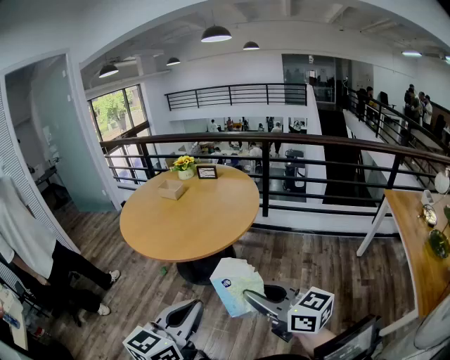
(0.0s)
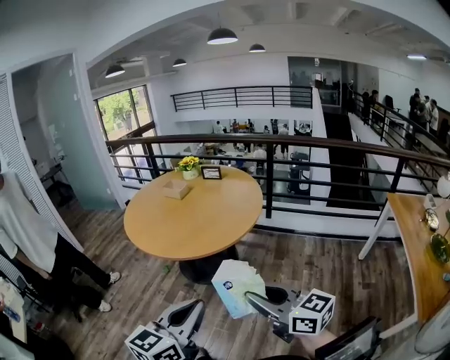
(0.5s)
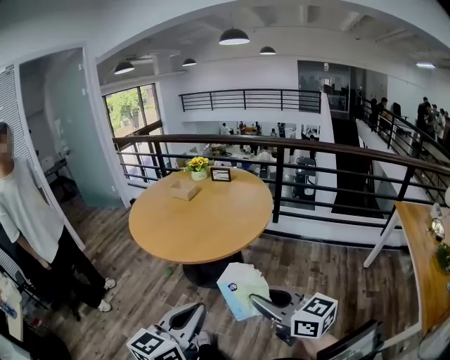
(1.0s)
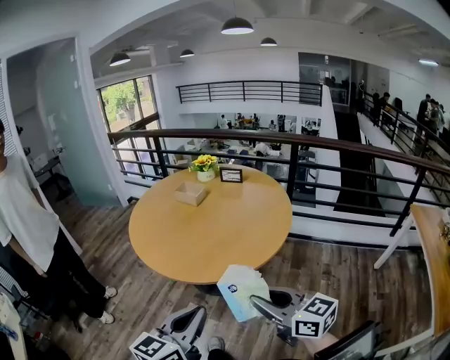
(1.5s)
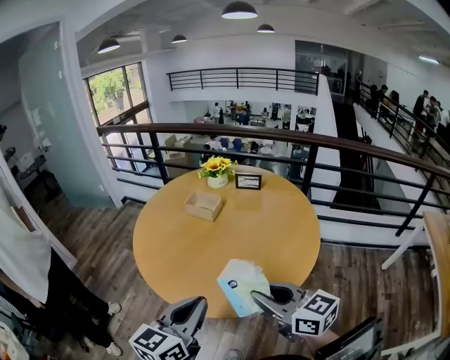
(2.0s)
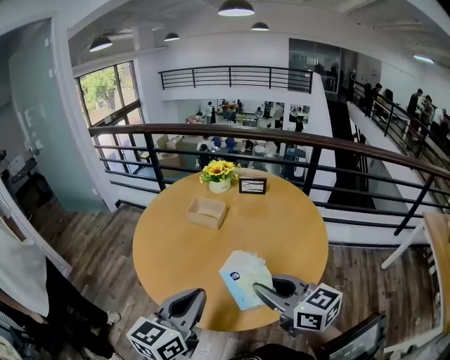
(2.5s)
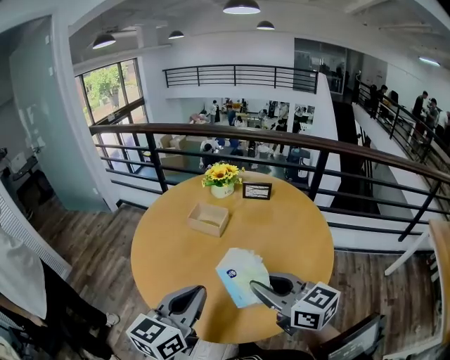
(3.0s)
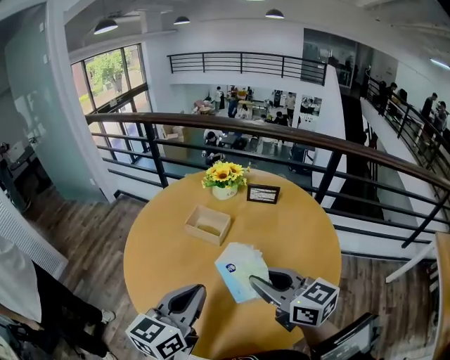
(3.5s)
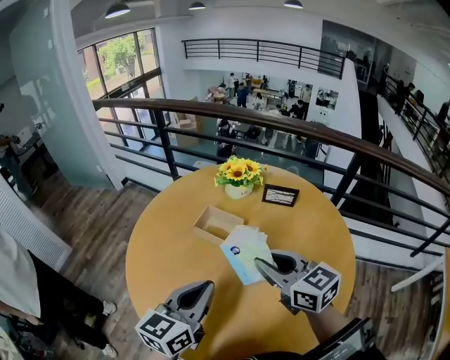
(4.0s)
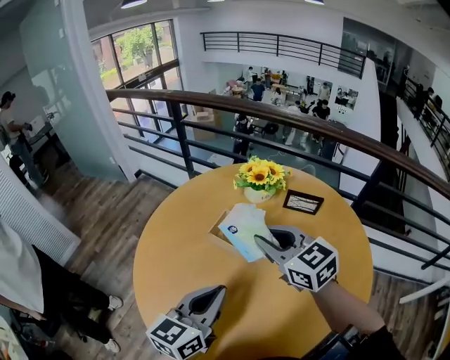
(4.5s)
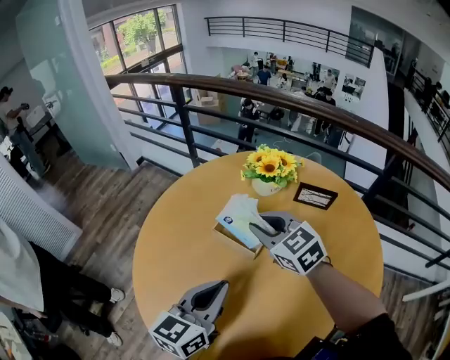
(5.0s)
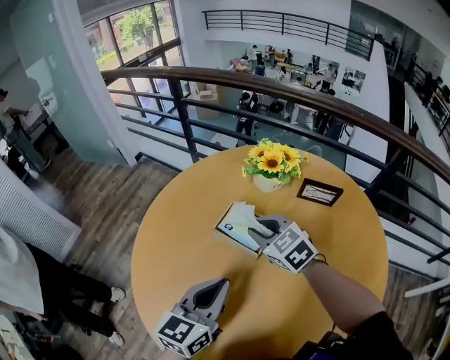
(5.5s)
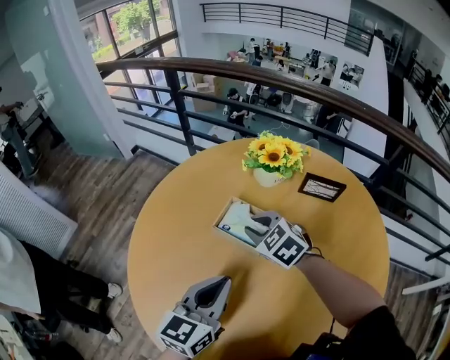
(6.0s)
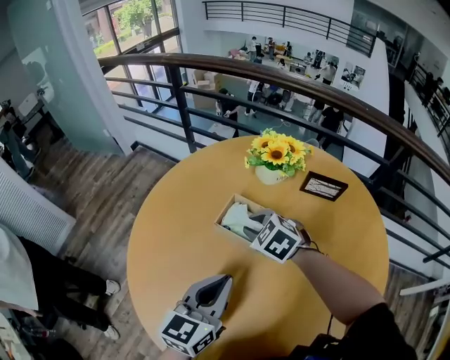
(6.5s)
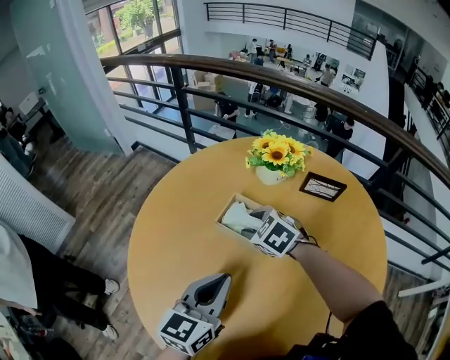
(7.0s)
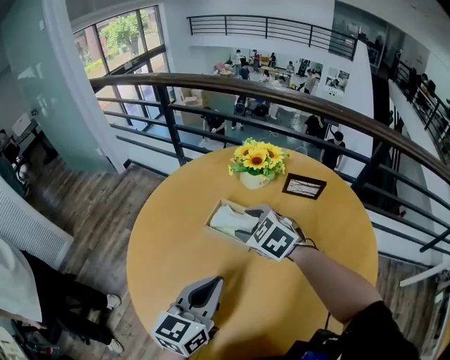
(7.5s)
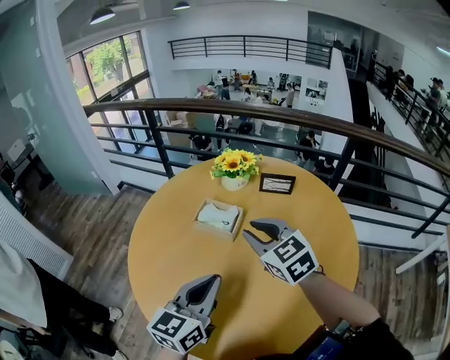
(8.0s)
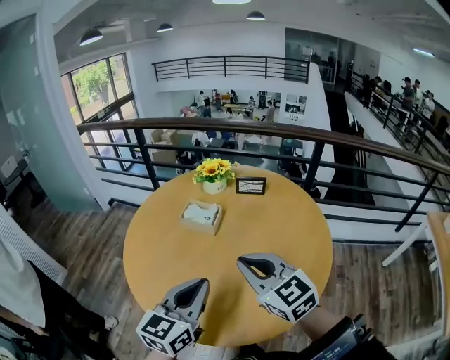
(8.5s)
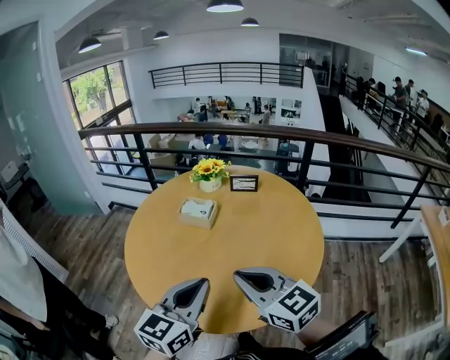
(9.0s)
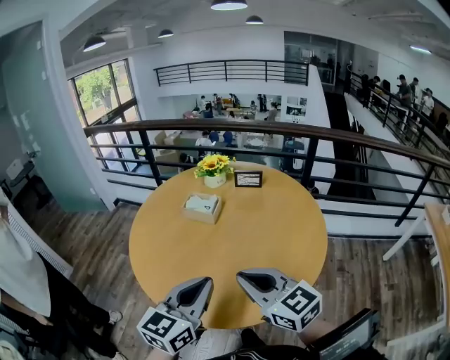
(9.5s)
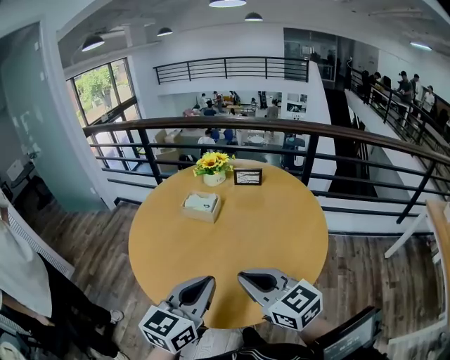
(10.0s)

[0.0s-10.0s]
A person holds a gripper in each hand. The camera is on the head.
0.0s to 2.0s: The grippers both shift forward and to the left by some 35 cm.
2.0s to 4.0s: The grippers both shift forward by approximately 30 cm.
4.0s to 6.0s: The left gripper is displaced downward and forward by some 10 cm. Meanwhile the right gripper is displaced forward, downward and to the left by about 25 cm, and tips its fingers downward by about 30 degrees.
6.0s to 8.0s: The right gripper shifts approximately 20 cm upward, backward and to the right, rotates about 30 degrees, and opens and closes again. The left gripper is displaced backward and upward by roughly 10 cm.
8.0s to 10.0s: The right gripper travels backward by approximately 25 cm, swivels approximately 20 degrees, and closes its fingers, while the left gripper shifts approximately 15 cm backward.

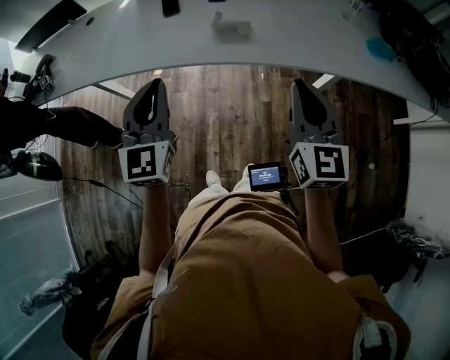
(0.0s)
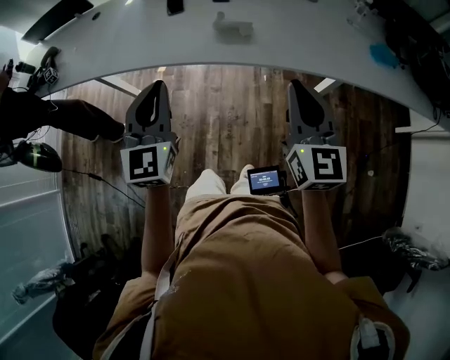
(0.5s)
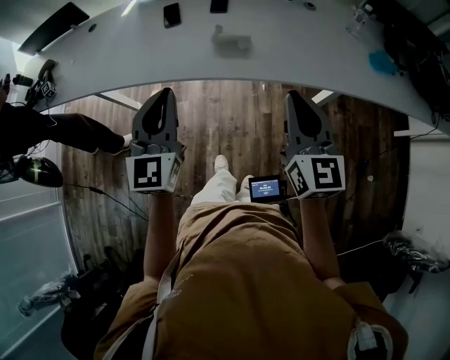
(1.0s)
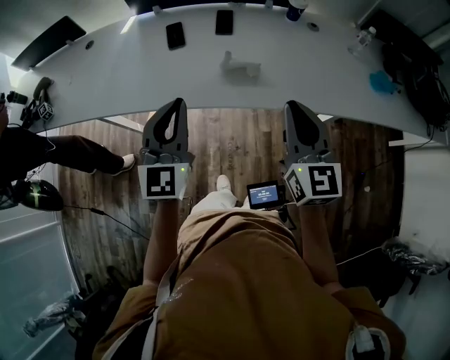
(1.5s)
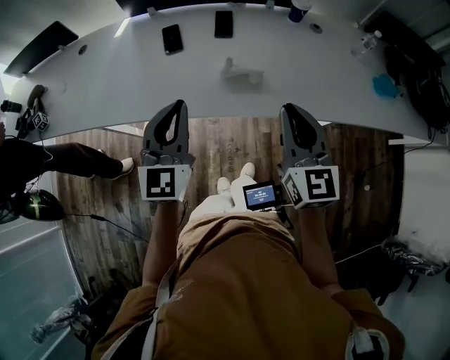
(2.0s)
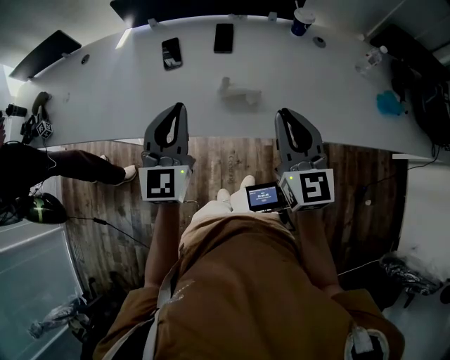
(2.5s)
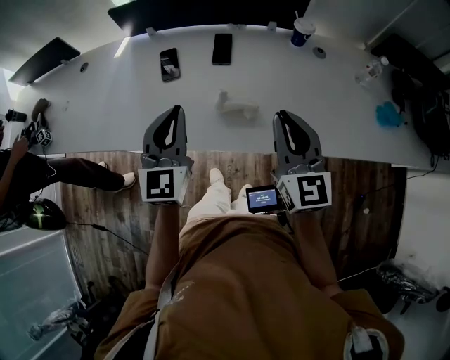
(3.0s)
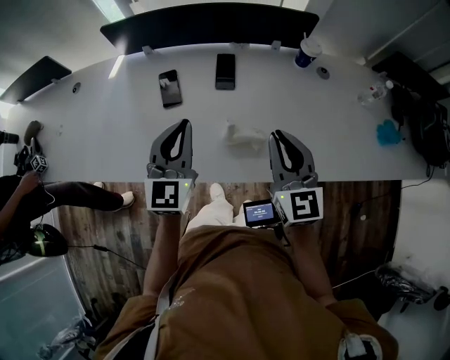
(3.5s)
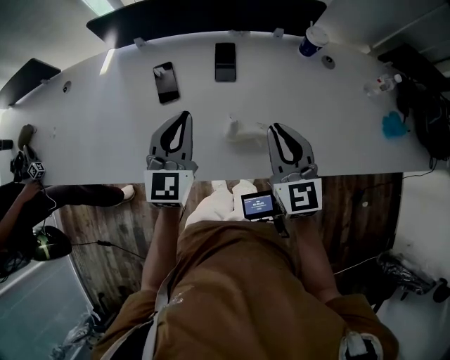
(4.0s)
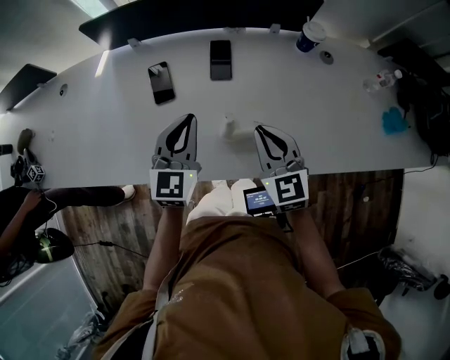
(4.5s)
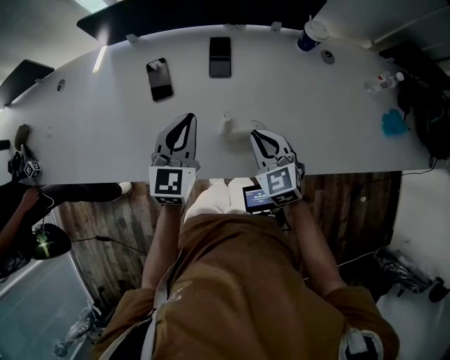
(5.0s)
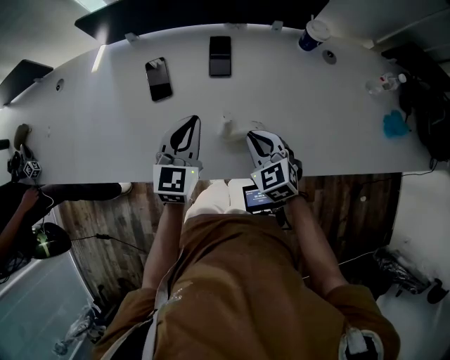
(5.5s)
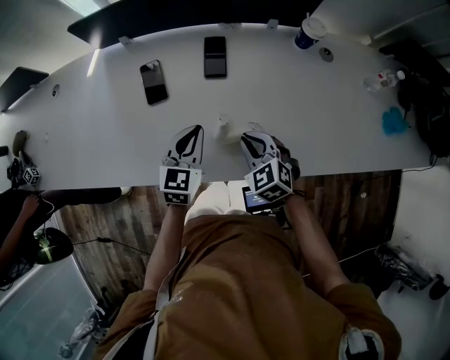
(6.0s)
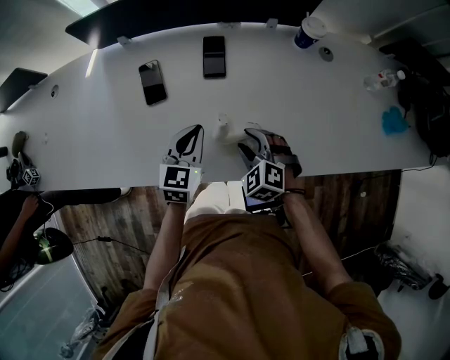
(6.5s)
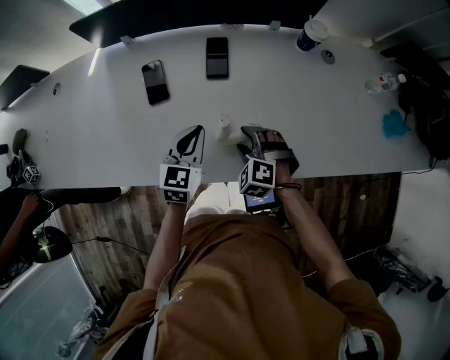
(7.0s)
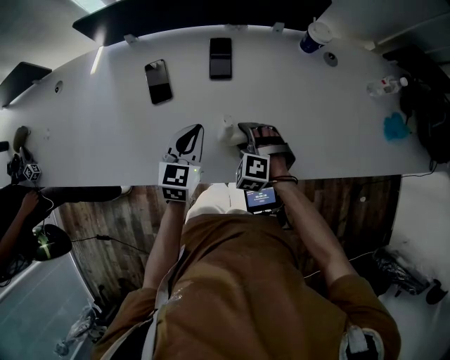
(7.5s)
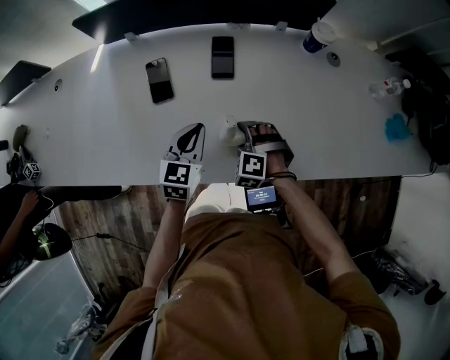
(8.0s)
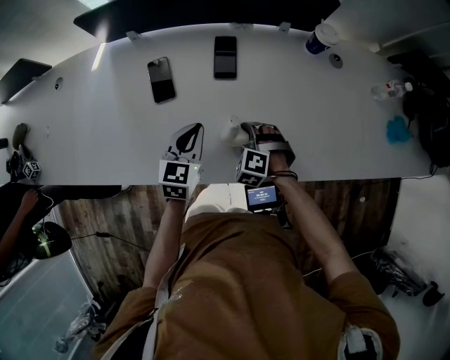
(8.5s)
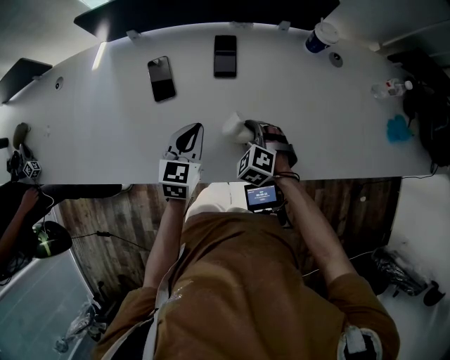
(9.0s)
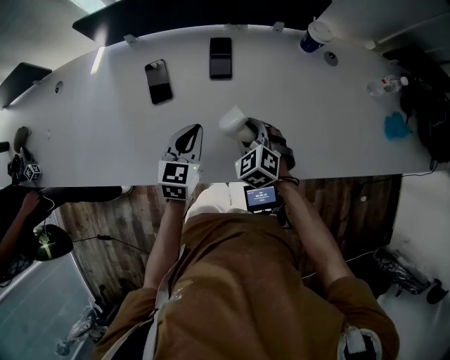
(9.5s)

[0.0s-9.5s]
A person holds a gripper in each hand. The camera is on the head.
0.0s to 2.0s: Both grippers travel together forward, roughly 15 cm.
2.0s to 4.0s: The grippers both shift forward by roughly 20 cm.
4.0s to 5.5s: The left gripper moves downward, some 5 cm. The right gripper heads downward, covering roughly 15 cm, and rotates some 30 degrees.
5.5s to 7.5s: Both grippers travel together downward, about 5 cm. The right gripper turns by some 40 degrees, and opens up.
7.5s to 9.5s: The right gripper changes its angle by some 30 degrees.

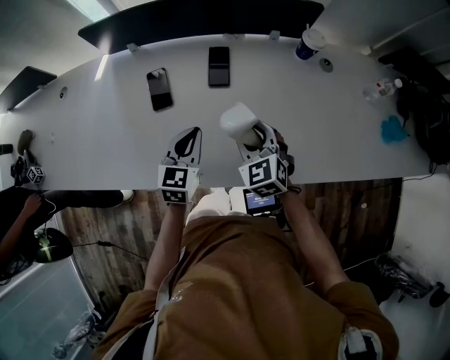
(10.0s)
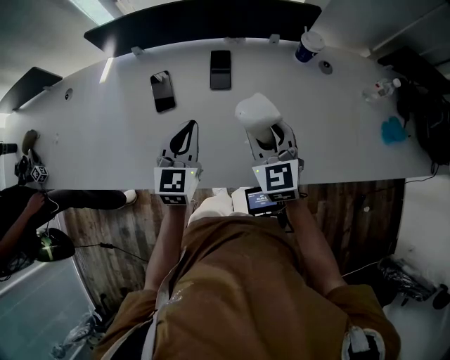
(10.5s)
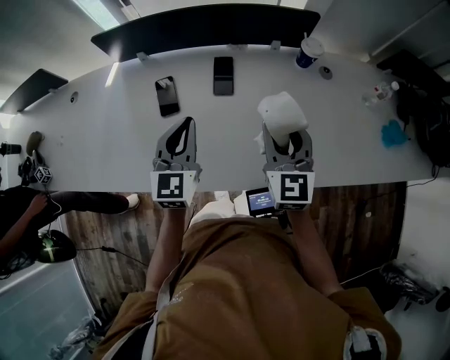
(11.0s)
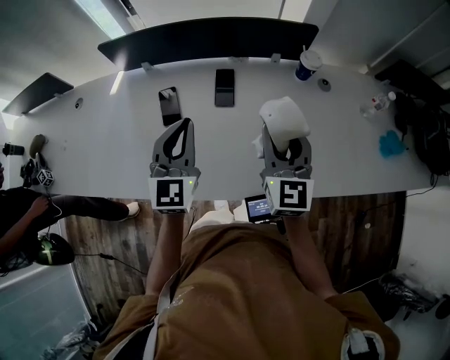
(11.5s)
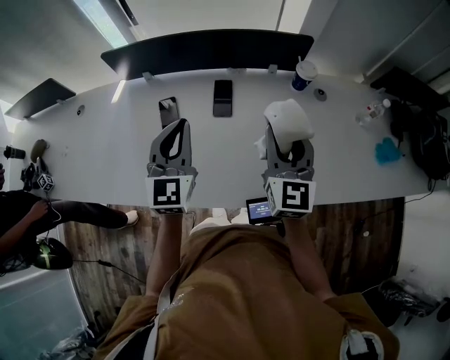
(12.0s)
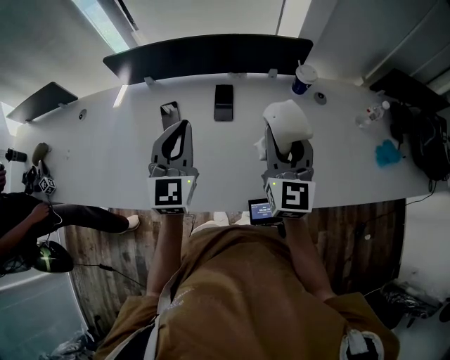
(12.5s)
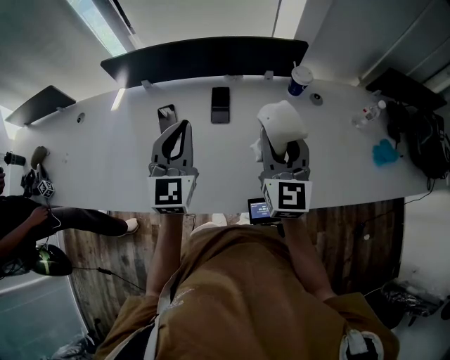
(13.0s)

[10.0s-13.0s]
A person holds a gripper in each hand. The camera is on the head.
10.0s to 11.5s: The right gripper heads upward and to the right, covering roughly 15 cm, and turns by approximately 40 degrees. Meanwhile the left gripper heads upward, covering approximately 15 cm, and changes its angle by about 30 degrees.
11.5s to 13.0s: The grippers stay close to where they were, moving slightly.

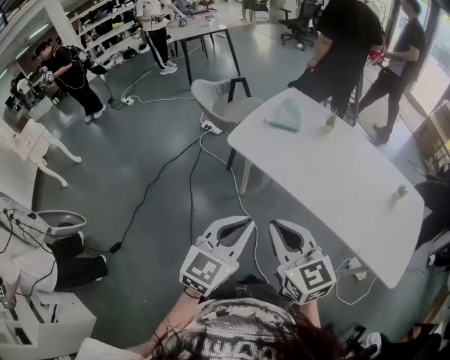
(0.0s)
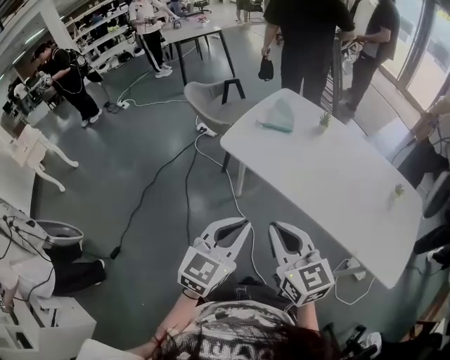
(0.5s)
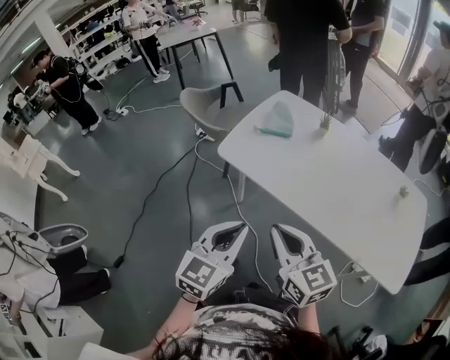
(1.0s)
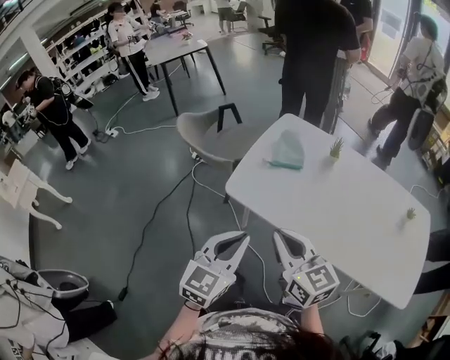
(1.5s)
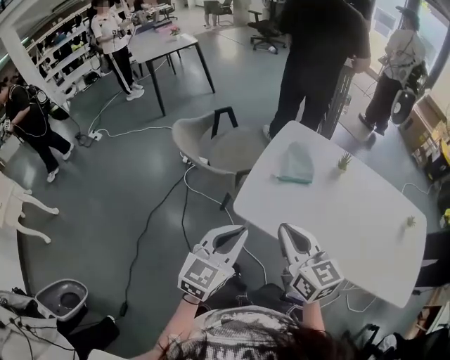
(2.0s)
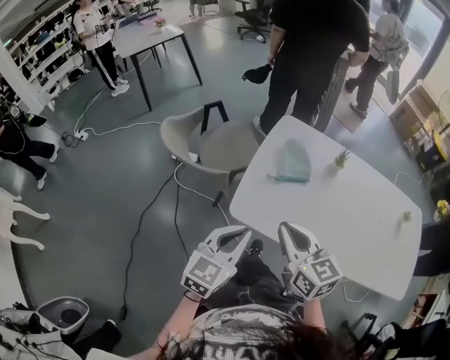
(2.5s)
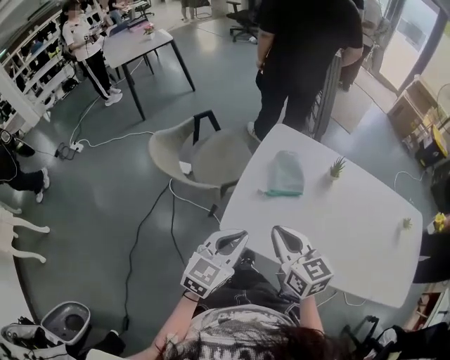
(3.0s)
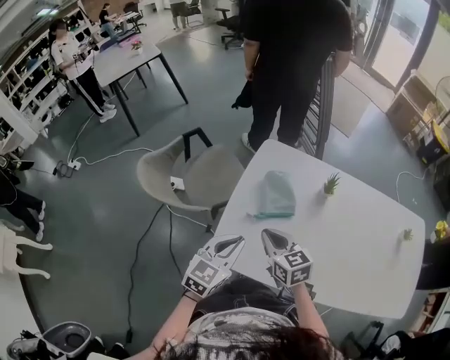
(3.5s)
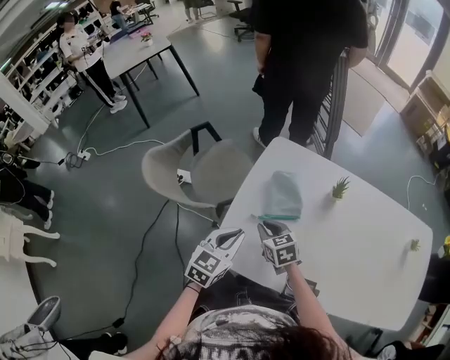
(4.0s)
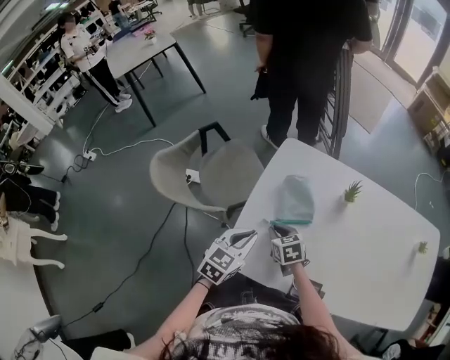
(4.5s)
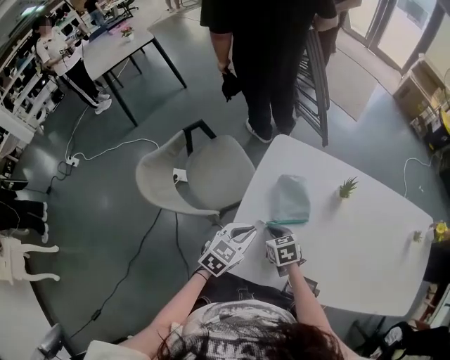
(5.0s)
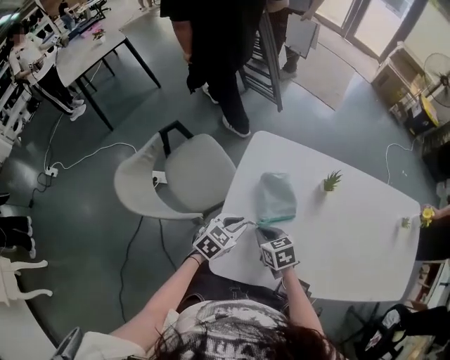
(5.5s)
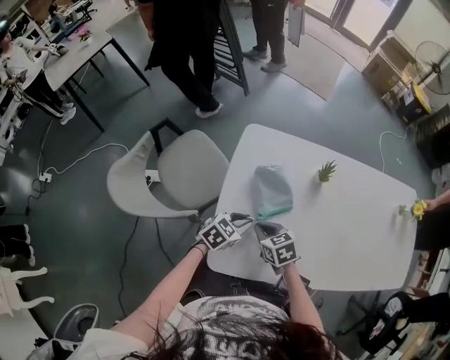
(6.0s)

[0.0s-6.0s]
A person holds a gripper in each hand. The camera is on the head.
0.0s to 2.0s: The left gripper travels forward and to the left by some 30 cm; the right gripper travels forward by some 30 cm.
2.0s to 4.0s: The left gripper shifts some 25 cm forward and downward; the right gripper heads downward and forward, covering some 35 cm, and changes its angle by approximately 30 degrees.
4.0s to 6.0s: The left gripper travels downward and forward by some 15 cm, and rotates roughly 40 degrees.
